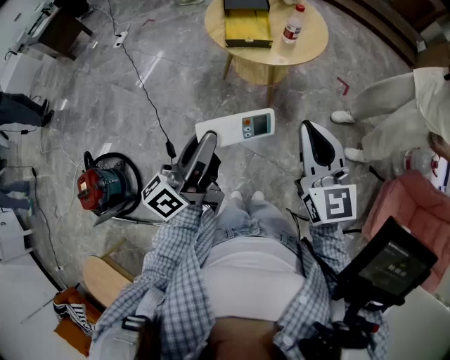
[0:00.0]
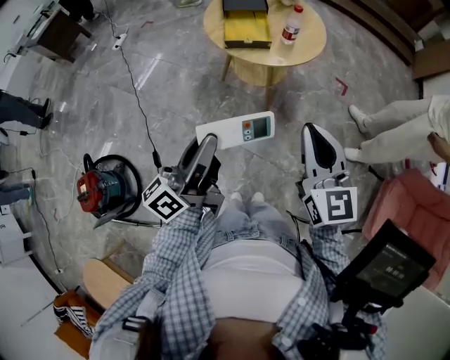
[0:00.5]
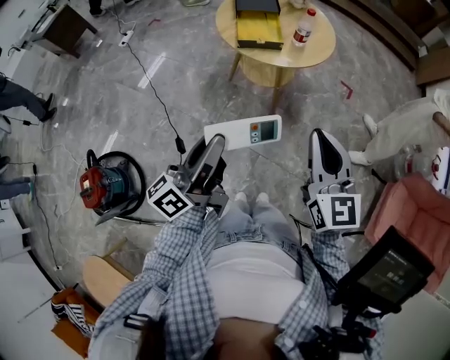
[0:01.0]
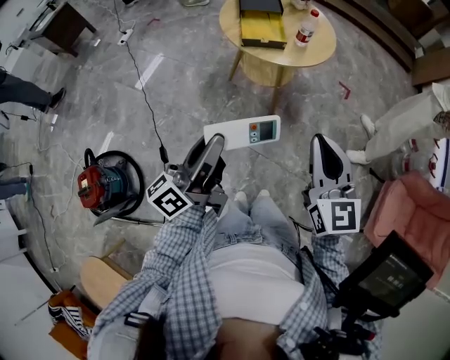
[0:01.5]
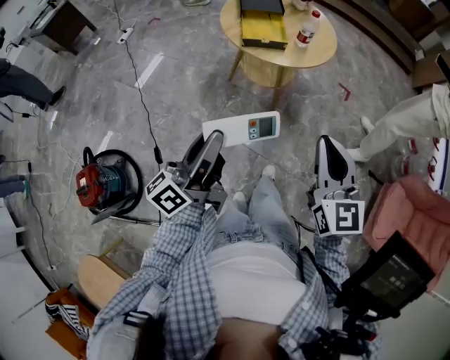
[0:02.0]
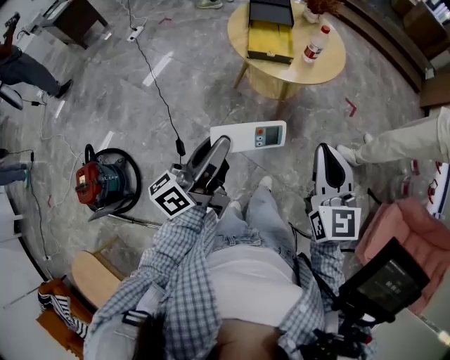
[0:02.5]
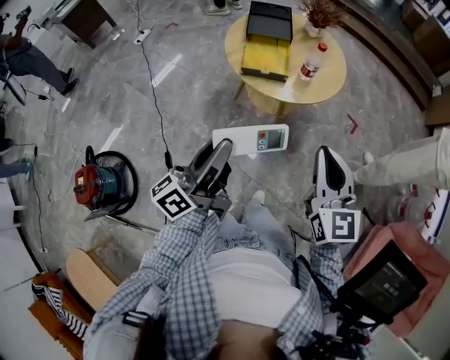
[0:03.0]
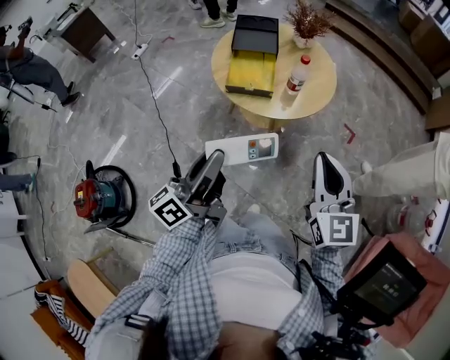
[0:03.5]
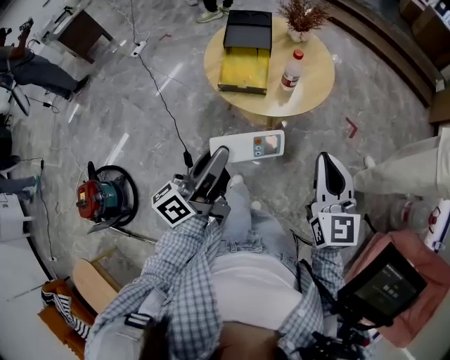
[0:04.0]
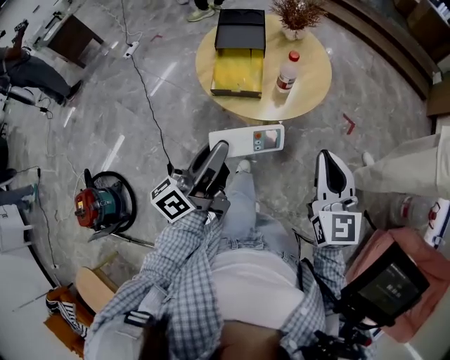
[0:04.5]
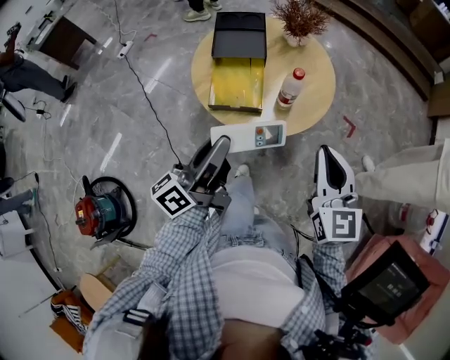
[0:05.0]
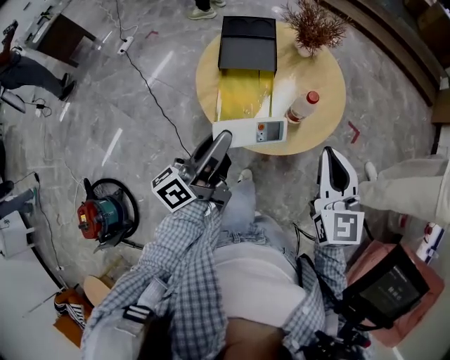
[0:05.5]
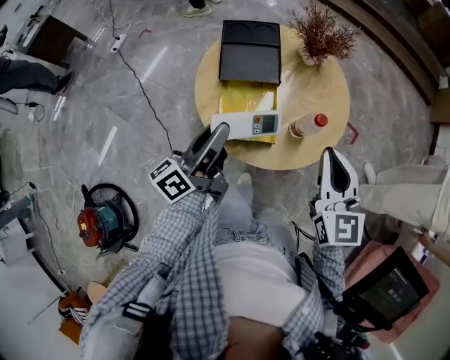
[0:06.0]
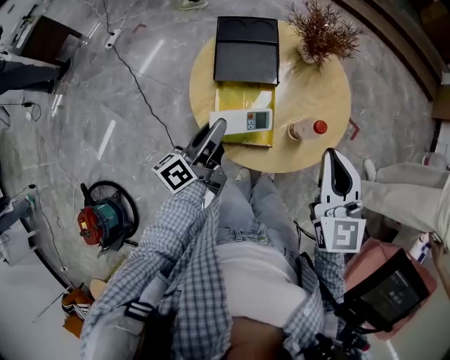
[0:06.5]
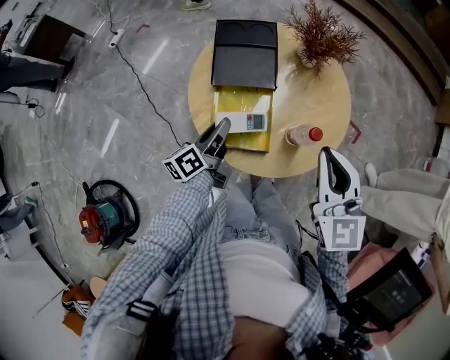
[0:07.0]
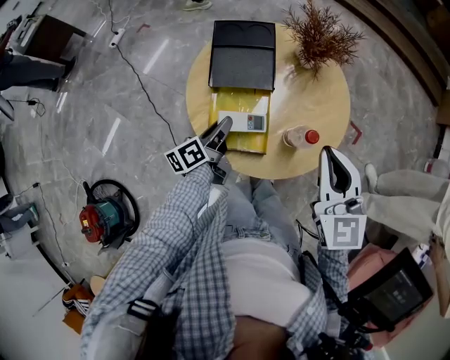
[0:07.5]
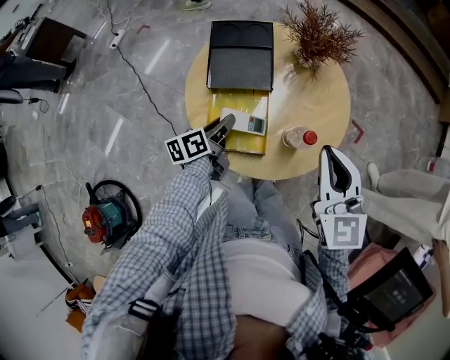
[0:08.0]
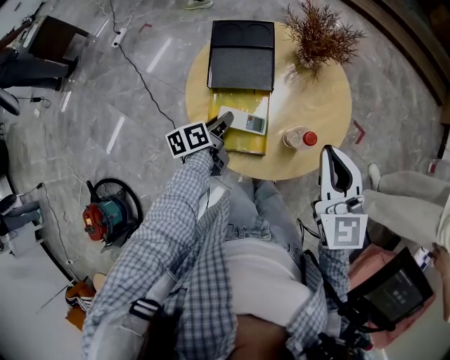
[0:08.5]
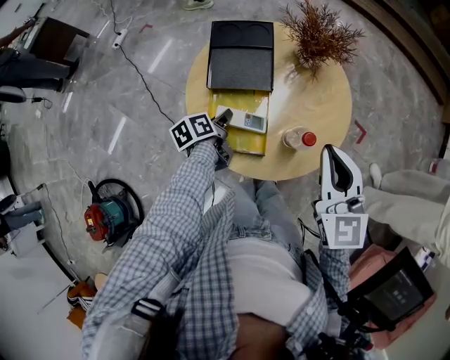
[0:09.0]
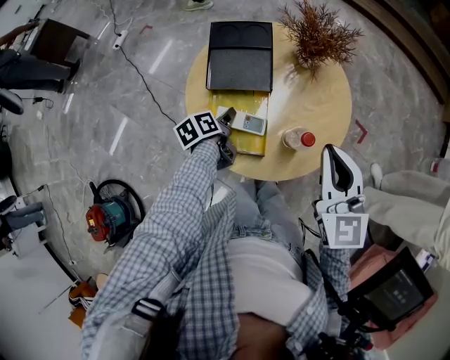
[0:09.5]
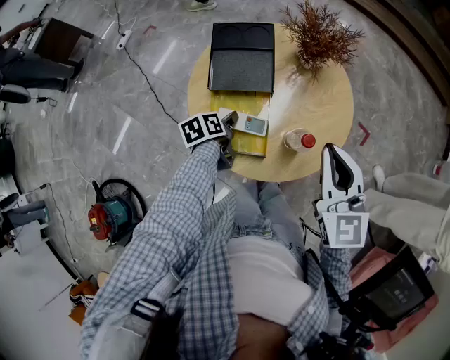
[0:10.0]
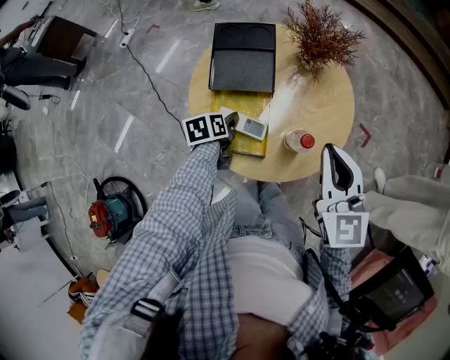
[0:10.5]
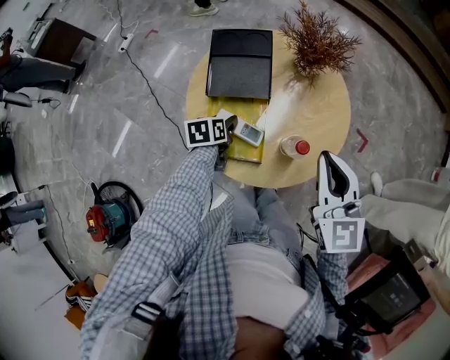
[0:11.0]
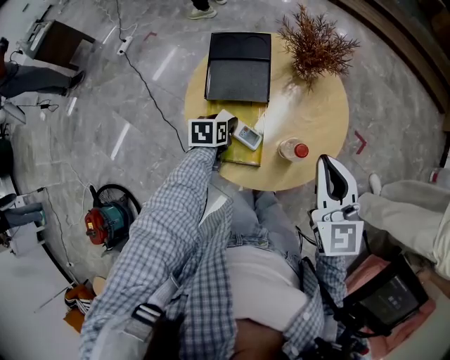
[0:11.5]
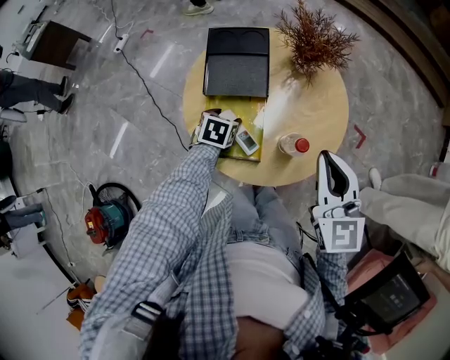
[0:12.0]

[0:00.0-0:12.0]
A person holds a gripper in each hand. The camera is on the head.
0:00.0 to 0:02.0: The left gripper moves about 5 cm, while the right gripper ends up approximately 5 cm from where it was.
0:02.0 to 0:04.0: Both grippers move forward and to the right, about 25 cm.
0:04.0 to 0:06.0: The left gripper goes roughly 25 cm forward, while the right gripper moves forward and to the left, roughly 20 cm.
0:06.0 to 0:08.0: The left gripper heads downward and forward, covering roughly 20 cm, and tips its fingers downward by approximately 30 degrees; the right gripper moves forward, roughly 5 cm.
0:08.0 to 0:10.0: The left gripper ends up about 5 cm from where it was, rotates approximately 30 degrees, and opens up.
0:10.0 to 0:12.0: The left gripper twists roughly 40 degrees clockwise, seen from behind.

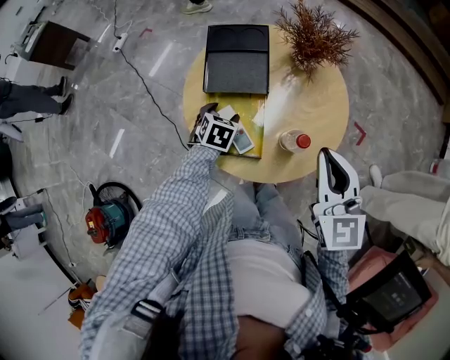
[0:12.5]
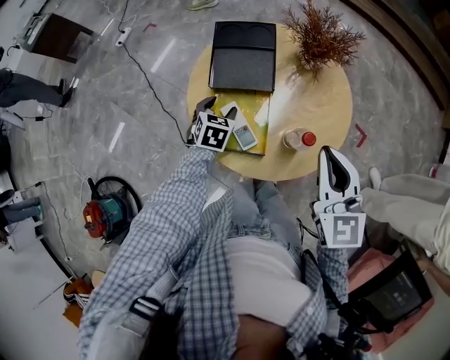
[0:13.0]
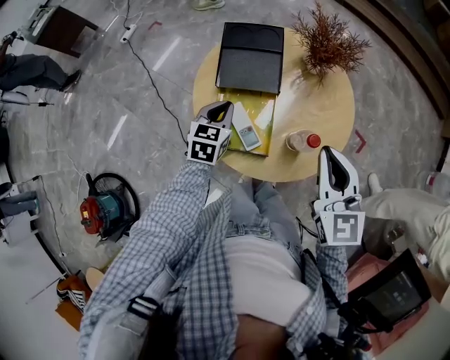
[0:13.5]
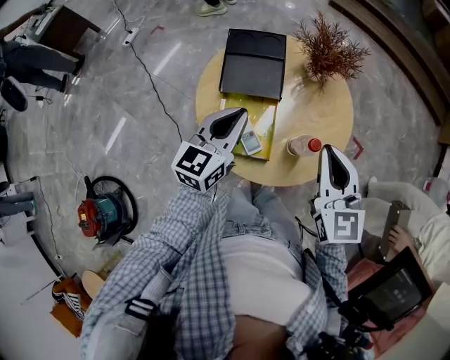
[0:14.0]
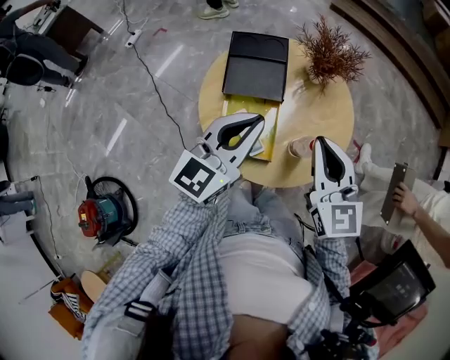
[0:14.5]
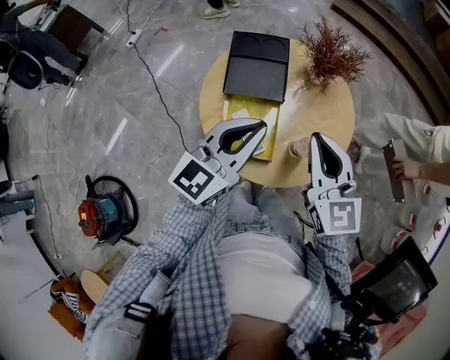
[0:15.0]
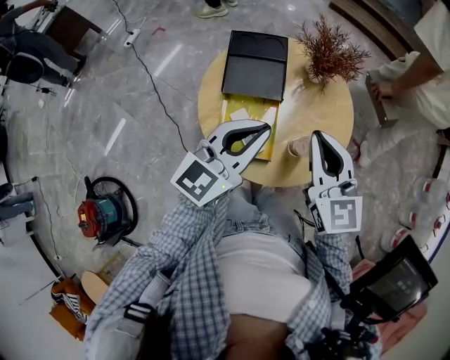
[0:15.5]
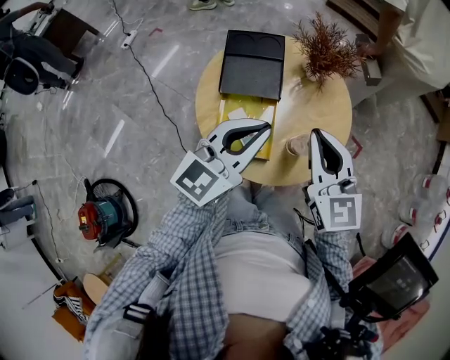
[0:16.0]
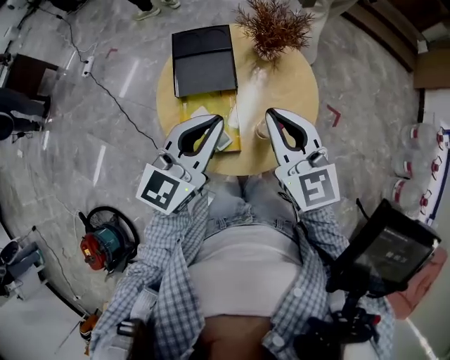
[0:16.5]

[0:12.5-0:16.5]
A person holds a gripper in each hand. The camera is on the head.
0:12.5 to 0:14.5: The left gripper moves upward, approximately 30 cm, tilts its fingers approximately 60 degrees upward, and closes its fingers, while the right gripper moves to the left, approximately 5 cm.
0:14.5 to 0:16.5: The grippers make only small movements.

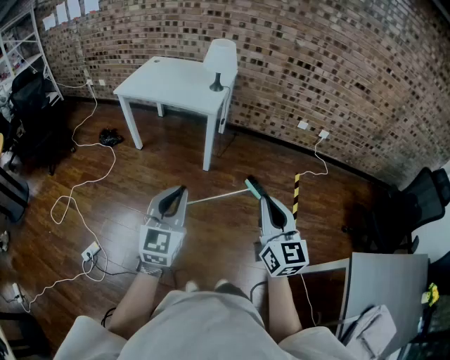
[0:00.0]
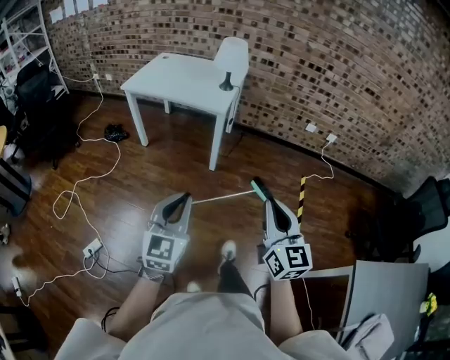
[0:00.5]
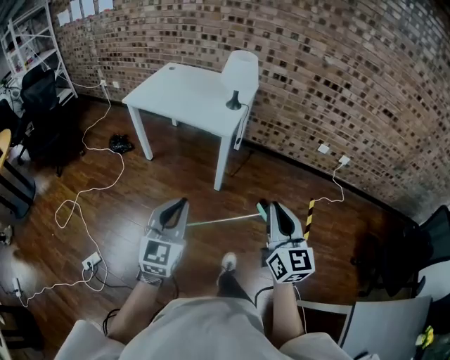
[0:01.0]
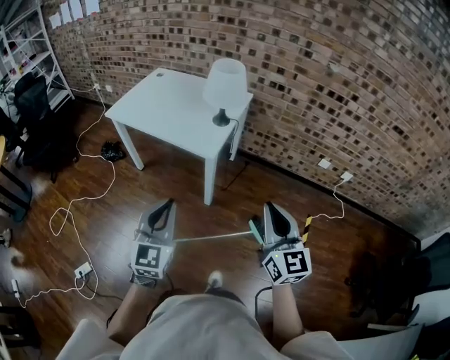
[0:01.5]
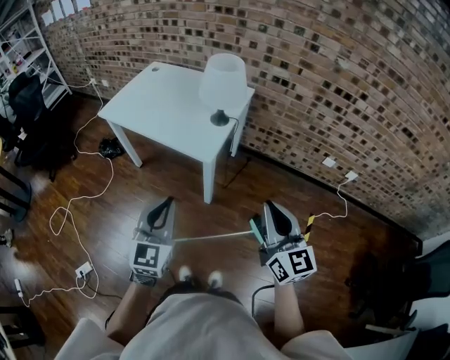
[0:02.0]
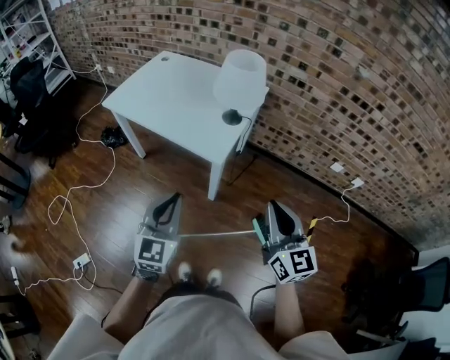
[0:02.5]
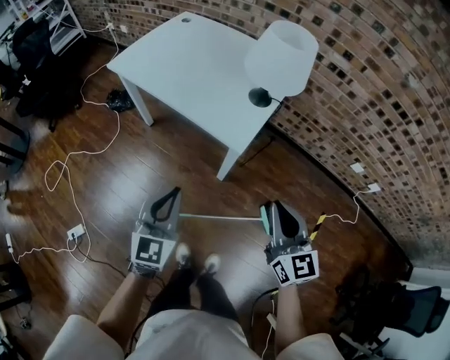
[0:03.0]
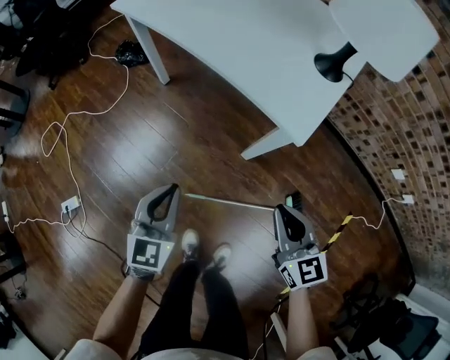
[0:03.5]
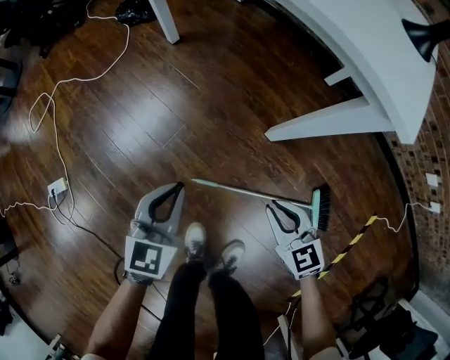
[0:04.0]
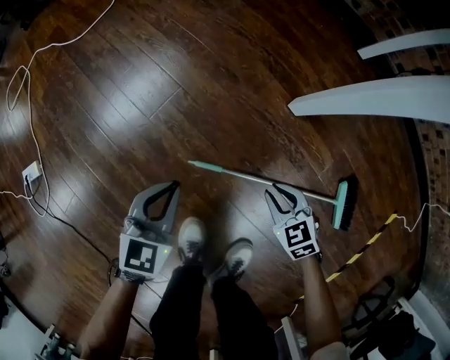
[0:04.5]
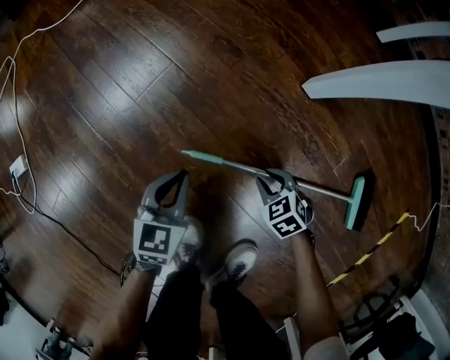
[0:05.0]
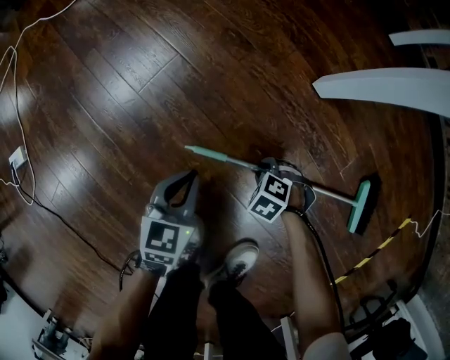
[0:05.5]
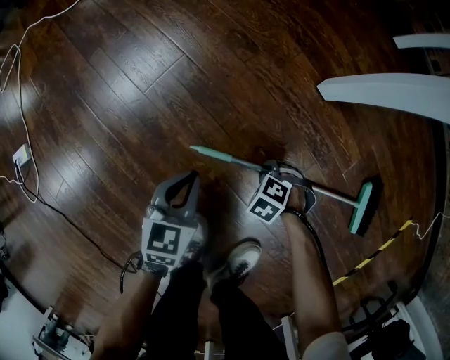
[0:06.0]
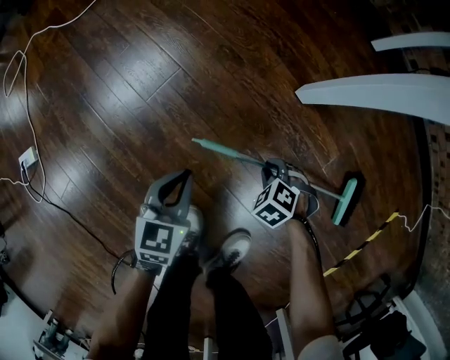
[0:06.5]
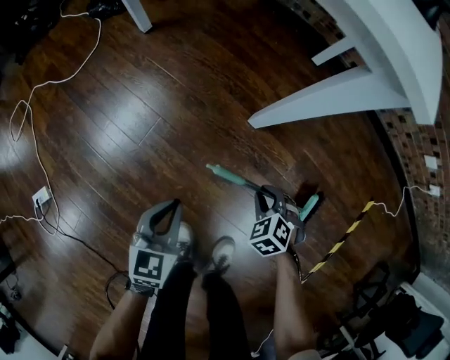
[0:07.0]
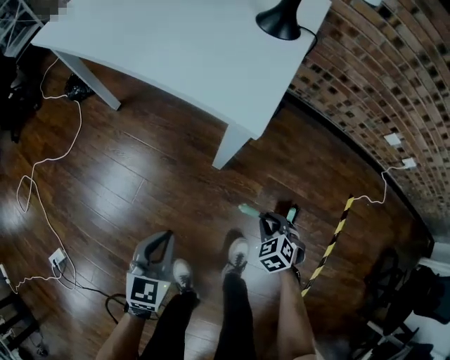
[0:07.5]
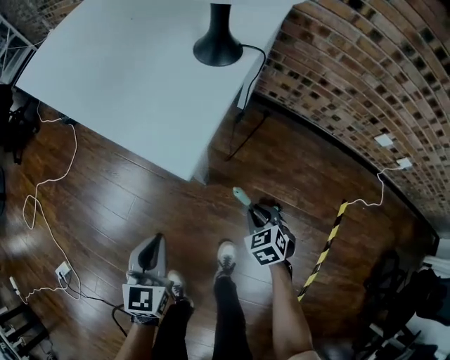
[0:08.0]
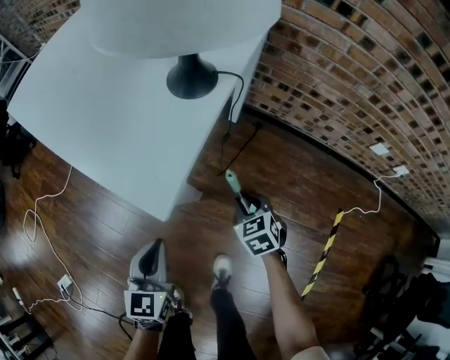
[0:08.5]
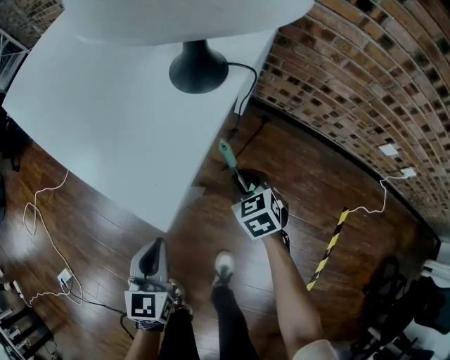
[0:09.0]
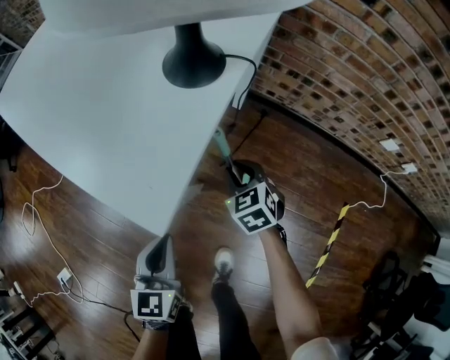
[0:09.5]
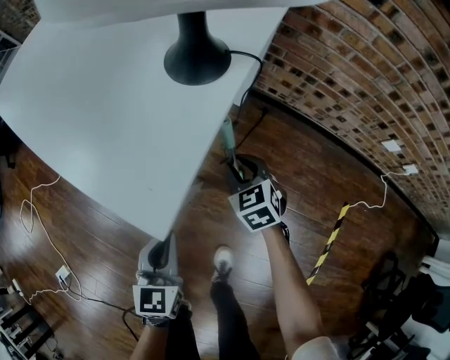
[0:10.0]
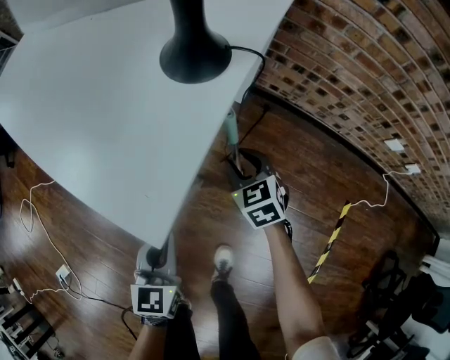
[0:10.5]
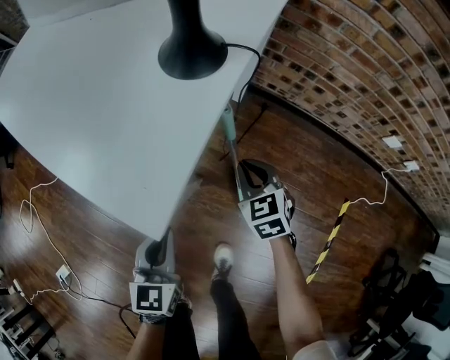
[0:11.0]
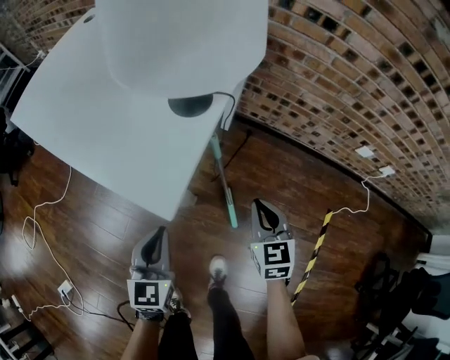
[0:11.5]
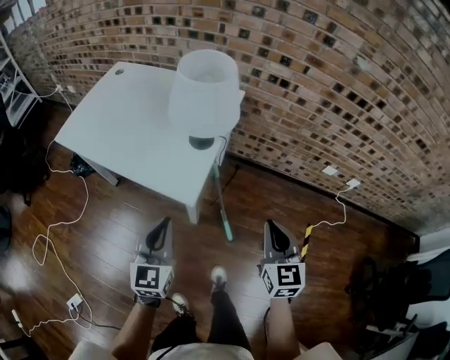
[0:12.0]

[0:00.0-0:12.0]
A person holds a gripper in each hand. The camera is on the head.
0:00.0 to 0:02.0: The two grippers go approximately 40 cm forward.
0:02.0 to 0:04.0: Both grippers travel together downward, approximately 60 cm. The right gripper tips its fingers downward by some 40 degrees. The left gripper rotates some 30 degrees.
0:04.0 to 0:06.0: The two grippers go some 40 cm downward. The left gripper swivels some 20 degrees. Meanwhile the right gripper tilts its fingers some 50 degrees downward.
0:06.0 to 0:08.0: Both grippers move upward, approximately 50 cm. The left gripper changes its angle by about 20 degrees; the right gripper rotates about 60 degrees.
0:08.0 to 0:10.0: The left gripper is displaced forward and to the right by approximately 10 cm. Meanwhile the right gripper travels forward by roughly 20 cm.
0:10.0 to 0:12.0: The left gripper is displaced upward by approximately 30 cm, and turns by about 20 degrees; the right gripper goes roughly 50 cm upward and backward, turns by roughly 40 degrees, and closes.
